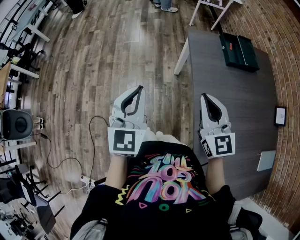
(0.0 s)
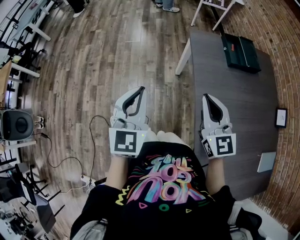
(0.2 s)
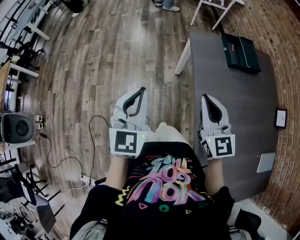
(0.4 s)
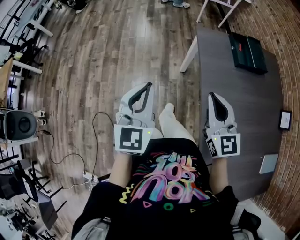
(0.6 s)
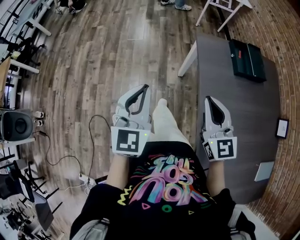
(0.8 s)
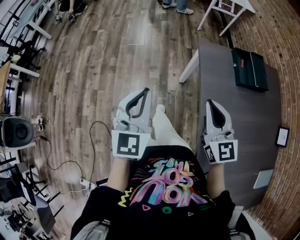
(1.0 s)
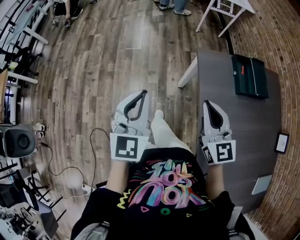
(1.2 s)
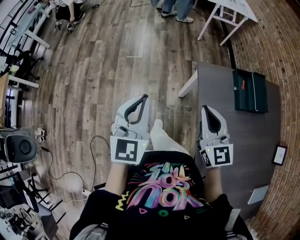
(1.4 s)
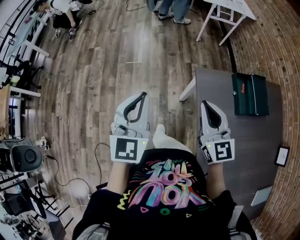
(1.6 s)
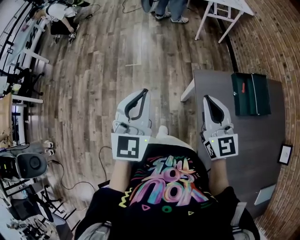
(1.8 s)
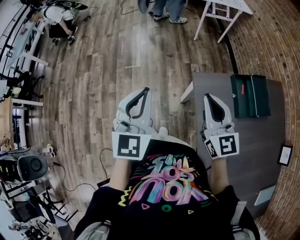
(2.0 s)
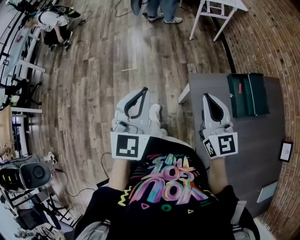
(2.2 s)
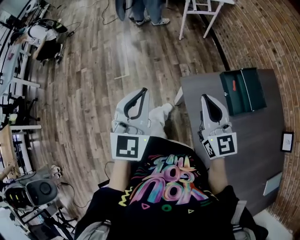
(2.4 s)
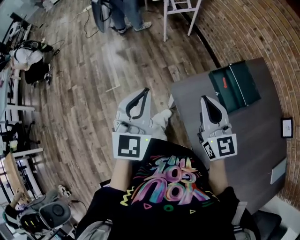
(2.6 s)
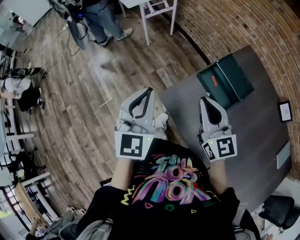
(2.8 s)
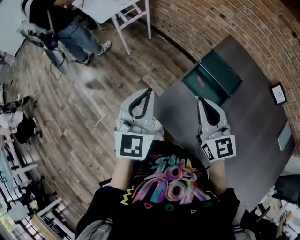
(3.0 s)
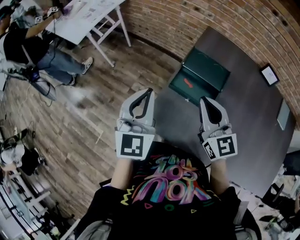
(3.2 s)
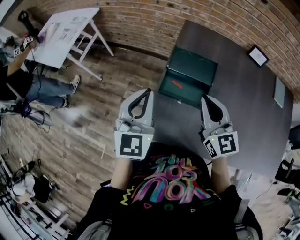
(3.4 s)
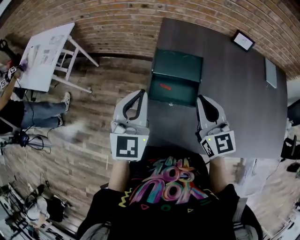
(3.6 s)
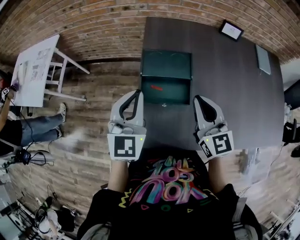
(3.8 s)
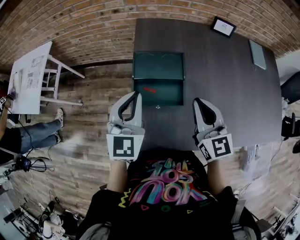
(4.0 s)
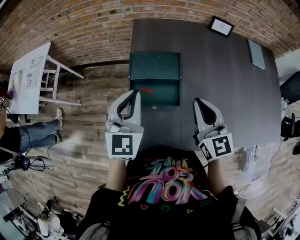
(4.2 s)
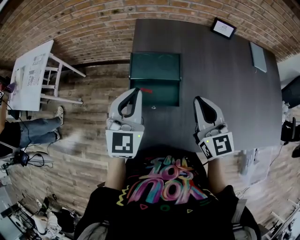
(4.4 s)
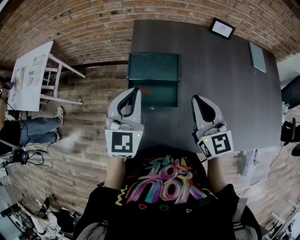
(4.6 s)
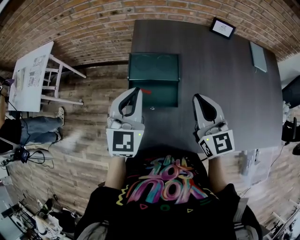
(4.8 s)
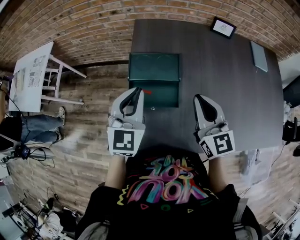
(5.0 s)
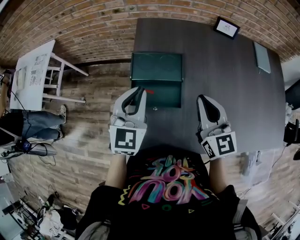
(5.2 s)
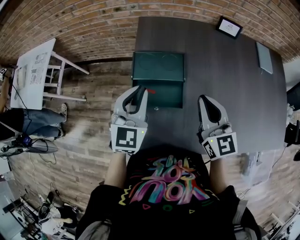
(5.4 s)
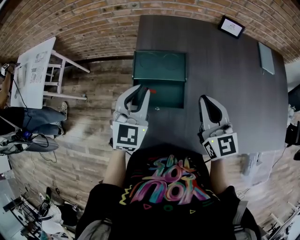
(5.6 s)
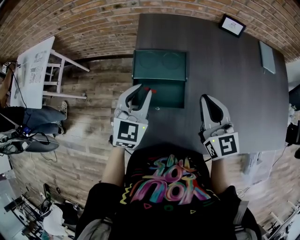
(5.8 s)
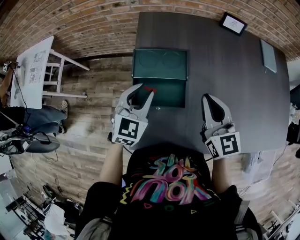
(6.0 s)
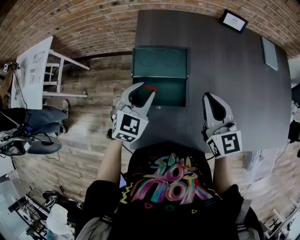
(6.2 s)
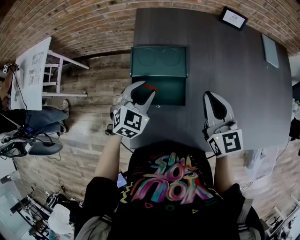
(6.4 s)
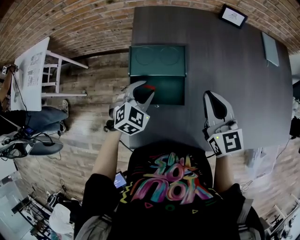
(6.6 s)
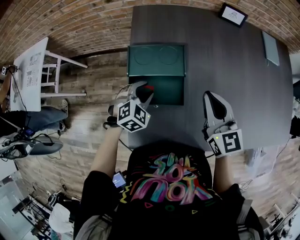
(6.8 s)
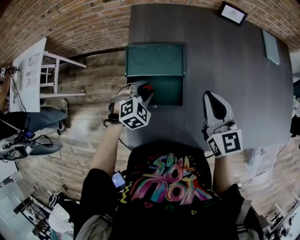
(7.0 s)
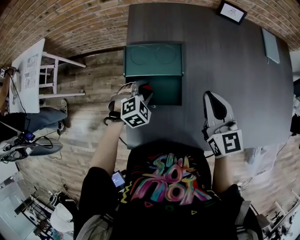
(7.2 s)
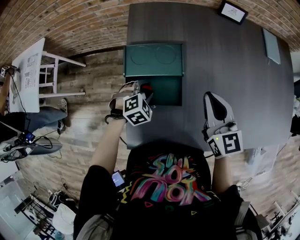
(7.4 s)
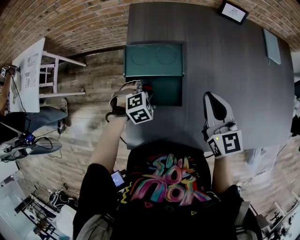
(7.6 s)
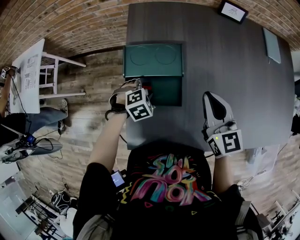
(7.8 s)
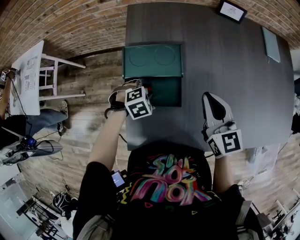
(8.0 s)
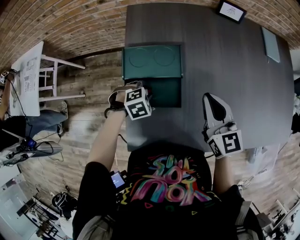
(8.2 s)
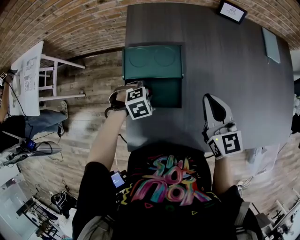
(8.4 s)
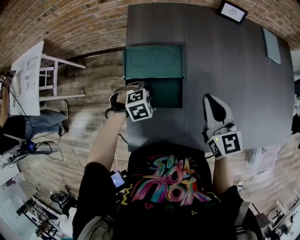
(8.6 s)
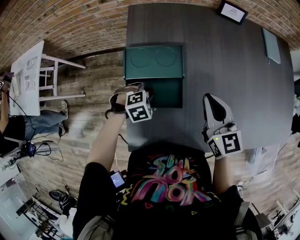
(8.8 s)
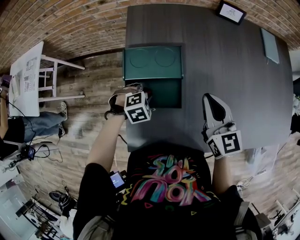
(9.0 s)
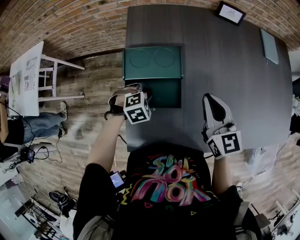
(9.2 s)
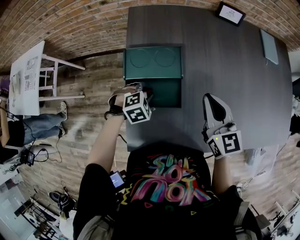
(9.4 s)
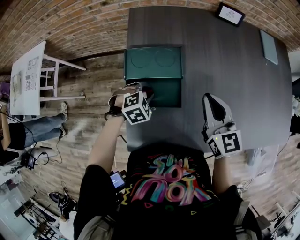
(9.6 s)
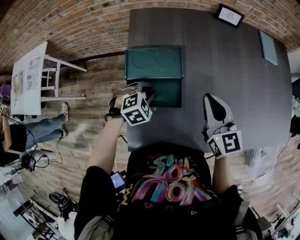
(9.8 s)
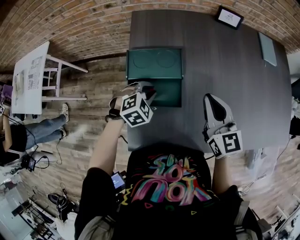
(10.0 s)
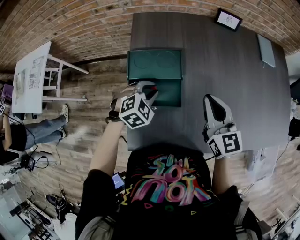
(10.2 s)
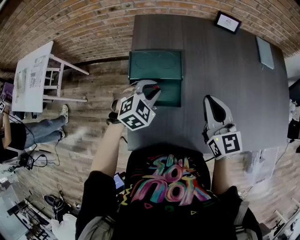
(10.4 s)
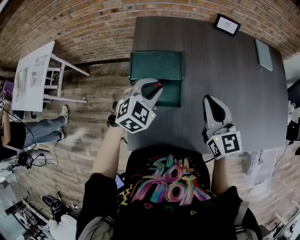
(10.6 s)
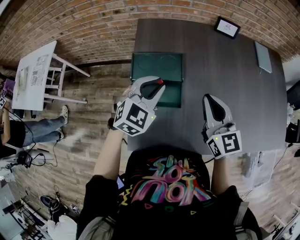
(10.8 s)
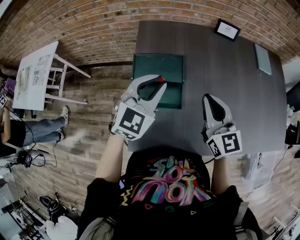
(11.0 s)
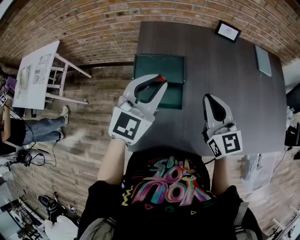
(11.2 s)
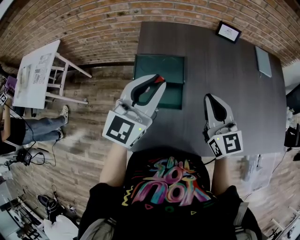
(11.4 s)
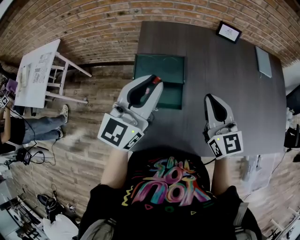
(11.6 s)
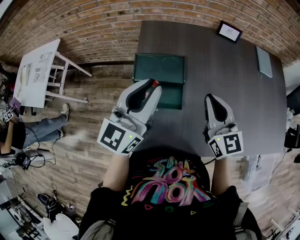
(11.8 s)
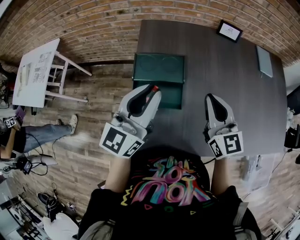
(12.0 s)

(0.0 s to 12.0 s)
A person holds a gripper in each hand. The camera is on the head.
0.0 s - 1.6 s: Both grippers travel together forward, roughly 30 cm.
1.6 s - 3.0 s: The right gripper moves about 25 cm, and rotates roughly 40 degrees, while the left gripper changes place by about 35 cm, and rotates some 50 degrees.
3.0 s - 4.4 s: The right gripper changes place by roughly 20 cm, and changes its angle by some 40 degrees; the left gripper shifts by roughly 25 cm, and turns by roughly 40 degrees.
4.4 s - 6.0 s: The left gripper is displaced downward by some 10 cm, and opens.
6.0 s - 7.6 s: The left gripper goes some 20 cm downward, and angles its fingers downward, by about 40 degrees.
7.6 s - 9.0 s: The grippers move only a little.
9.0 s - 10.4 s: The left gripper travels upward by some 15 cm, and rotates about 30 degrees.
10.4 s - 12.0 s: The left gripper travels upward by roughly 20 cm, and tips its fingers upward by roughly 50 degrees.

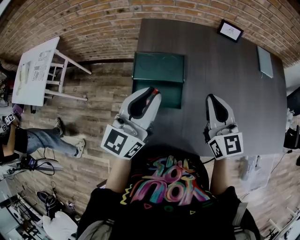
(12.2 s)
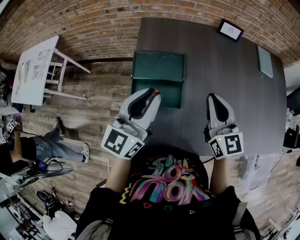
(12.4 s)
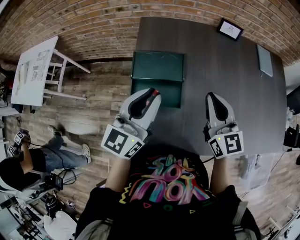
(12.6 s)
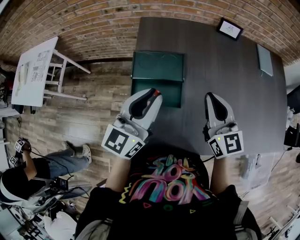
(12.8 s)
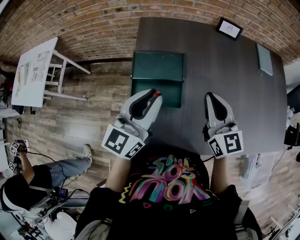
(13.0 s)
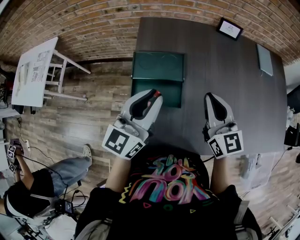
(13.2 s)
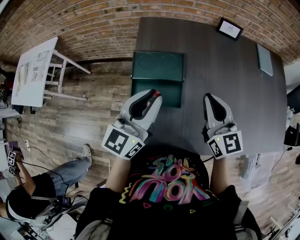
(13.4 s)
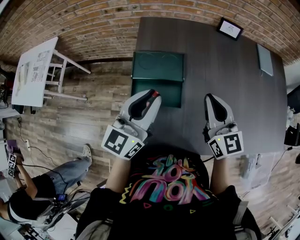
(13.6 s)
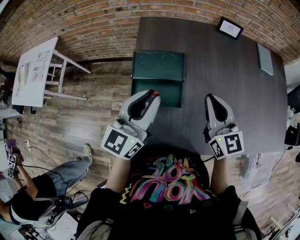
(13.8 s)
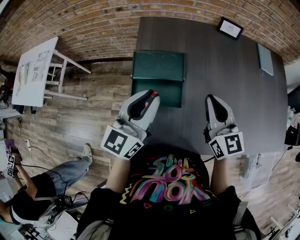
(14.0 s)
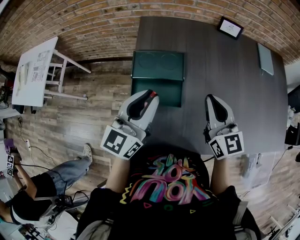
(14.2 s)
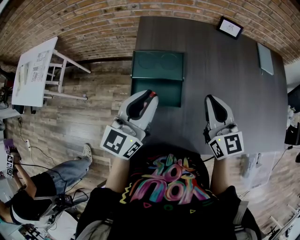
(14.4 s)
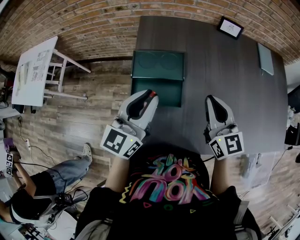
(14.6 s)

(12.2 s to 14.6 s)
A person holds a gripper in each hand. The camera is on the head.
12.2 s - 14.6 s: The grippers make only small movements.

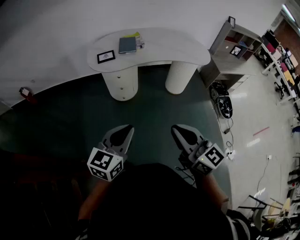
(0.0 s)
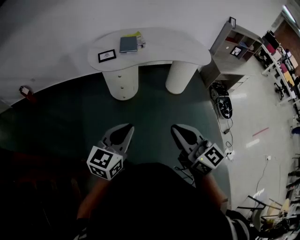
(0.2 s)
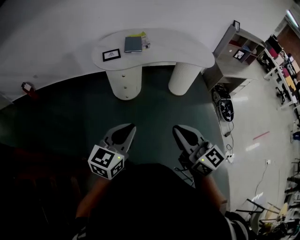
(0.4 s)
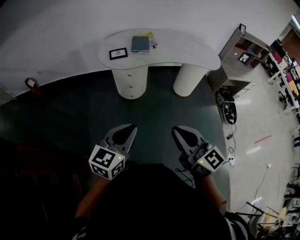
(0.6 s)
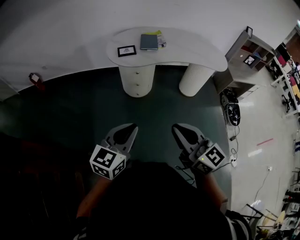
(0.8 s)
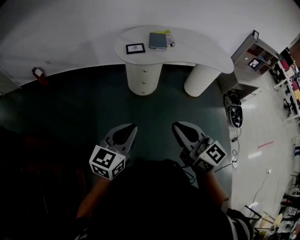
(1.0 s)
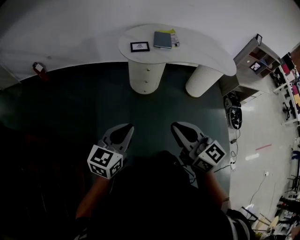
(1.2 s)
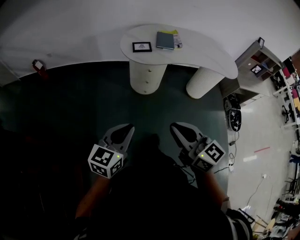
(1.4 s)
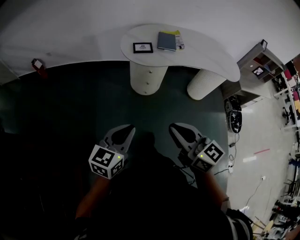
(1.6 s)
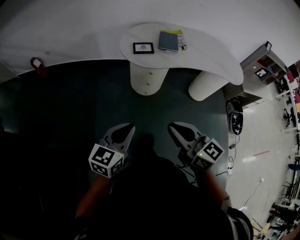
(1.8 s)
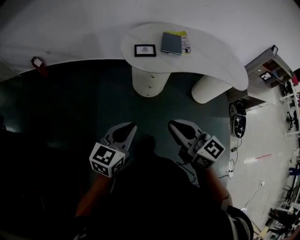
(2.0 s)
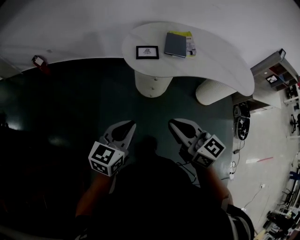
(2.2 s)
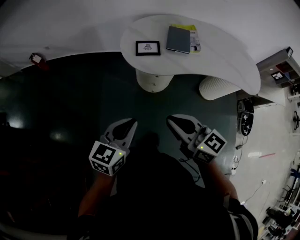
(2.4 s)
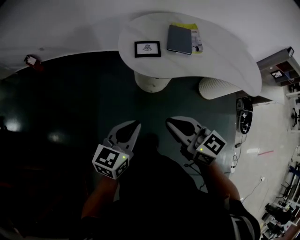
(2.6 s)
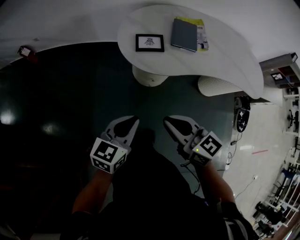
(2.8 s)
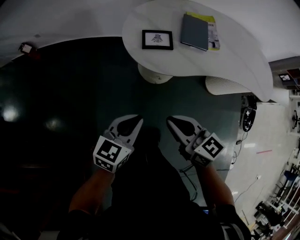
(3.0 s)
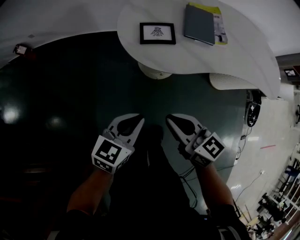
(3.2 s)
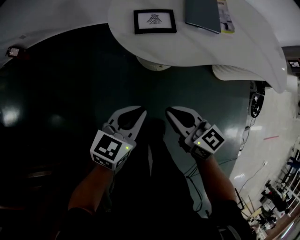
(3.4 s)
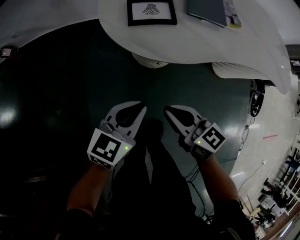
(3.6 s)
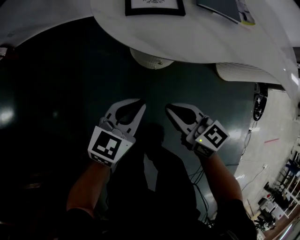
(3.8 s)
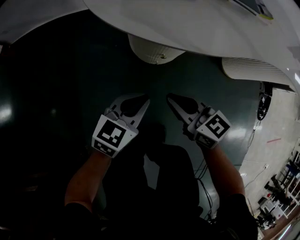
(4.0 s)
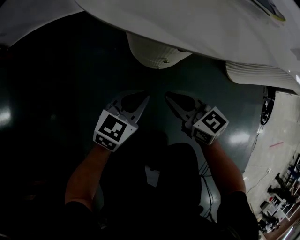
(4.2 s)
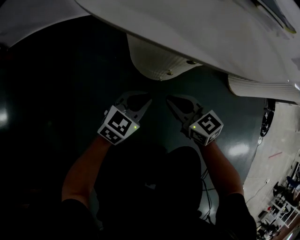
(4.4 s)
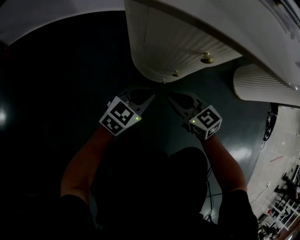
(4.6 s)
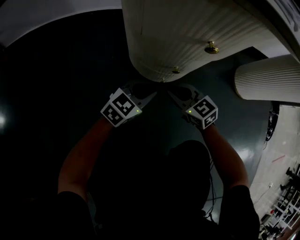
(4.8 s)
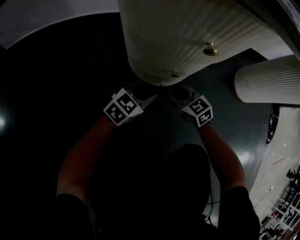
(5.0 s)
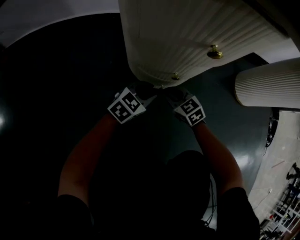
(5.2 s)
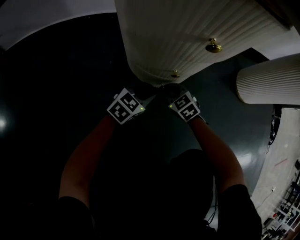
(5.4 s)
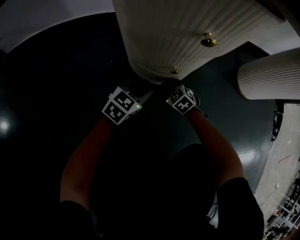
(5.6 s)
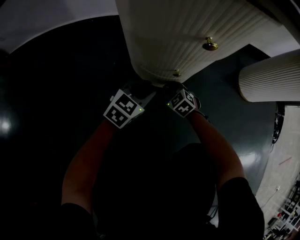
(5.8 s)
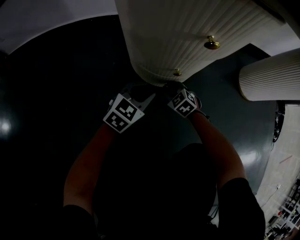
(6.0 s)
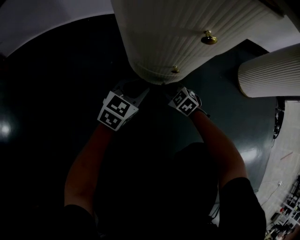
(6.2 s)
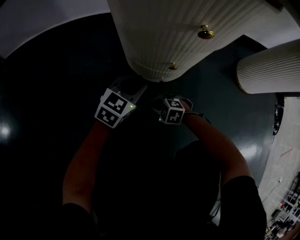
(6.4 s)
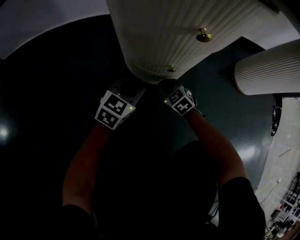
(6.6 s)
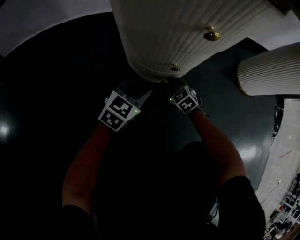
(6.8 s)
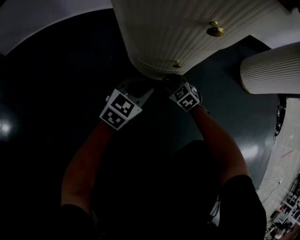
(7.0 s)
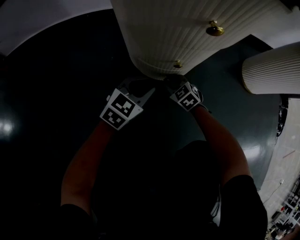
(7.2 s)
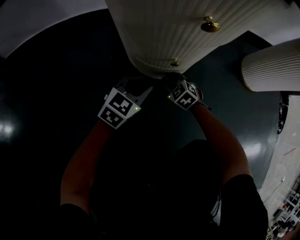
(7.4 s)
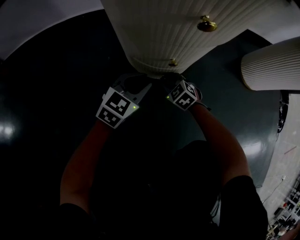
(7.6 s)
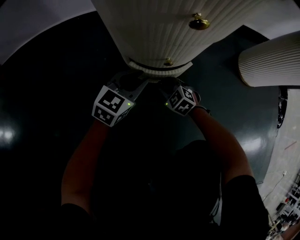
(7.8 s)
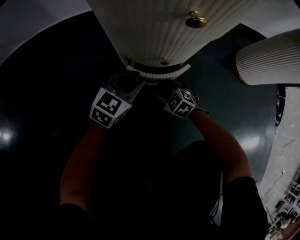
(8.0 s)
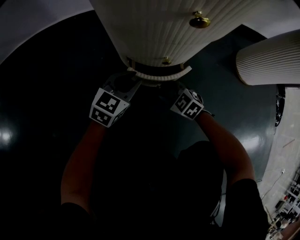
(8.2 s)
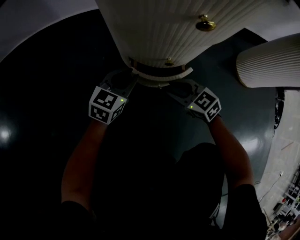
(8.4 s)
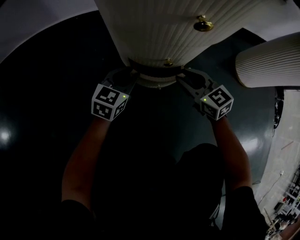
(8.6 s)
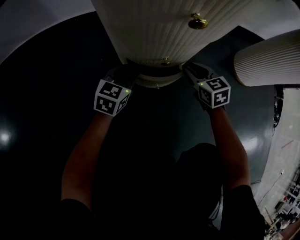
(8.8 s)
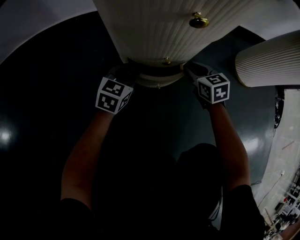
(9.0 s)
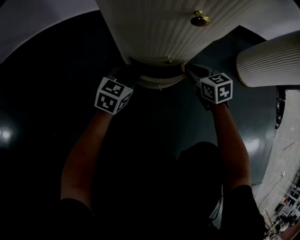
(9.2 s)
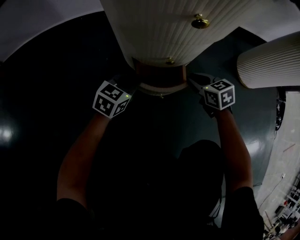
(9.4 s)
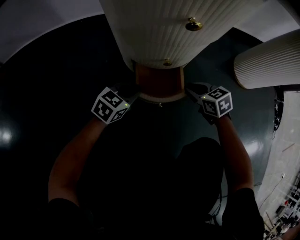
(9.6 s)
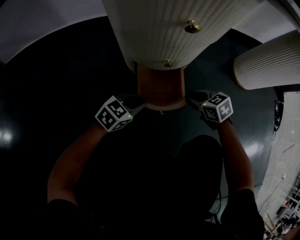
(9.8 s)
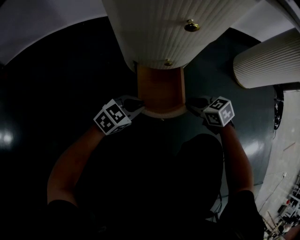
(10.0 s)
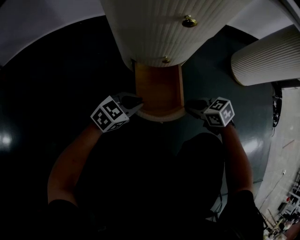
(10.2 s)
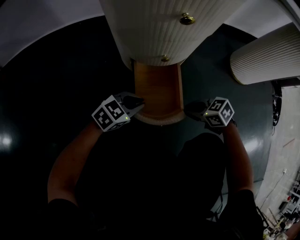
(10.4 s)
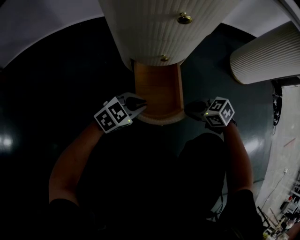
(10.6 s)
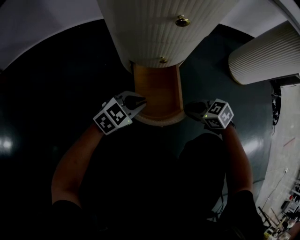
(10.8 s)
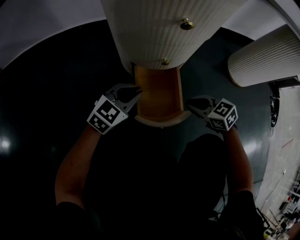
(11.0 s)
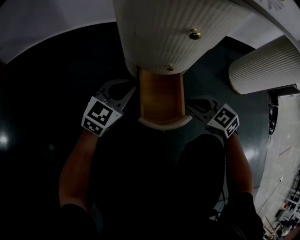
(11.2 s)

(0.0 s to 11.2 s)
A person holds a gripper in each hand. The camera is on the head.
0.0 s - 1.6 s: The right gripper is displaced to the left and forward by about 20 cm, while the left gripper moves to the left, some 20 cm.
1.6 s - 3.2 s: The grippers both shift forward and downward by about 50 cm.
3.2 s - 4.8 s: Both grippers travel together downward, some 50 cm. The left gripper turns by roughly 20 degrees, while the right gripper turns by approximately 20 degrees.
4.8 s - 6.4 s: The left gripper shifts by about 5 cm. The right gripper travels downward by approximately 15 cm, and points its fingers about 30 degrees further downward.
6.4 s - 8.0 s: The right gripper rotates approximately 20 degrees.
8.0 s - 9.6 s: The left gripper changes place by about 5 cm; the right gripper moves to the right and upward, some 15 cm, and rotates some 40 degrees.
9.6 s - 11.2 s: The grippers both shift upward by some 10 cm. The right gripper changes its angle by approximately 20 degrees. The left gripper changes its angle by some 20 degrees.
